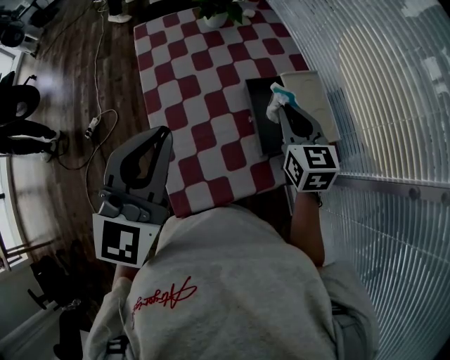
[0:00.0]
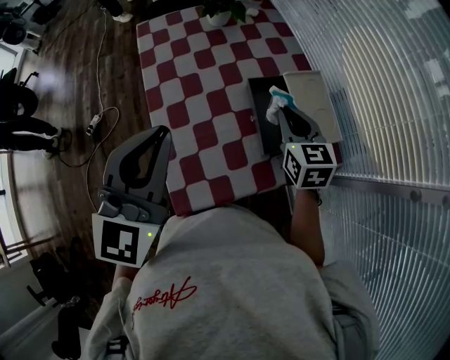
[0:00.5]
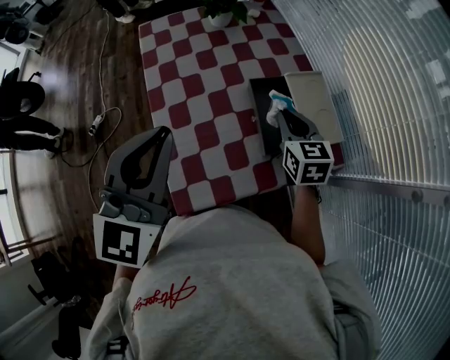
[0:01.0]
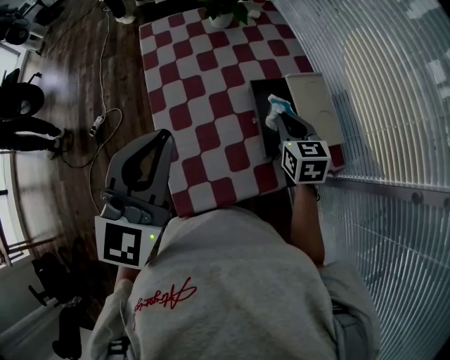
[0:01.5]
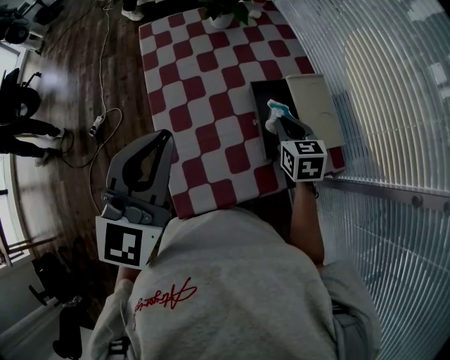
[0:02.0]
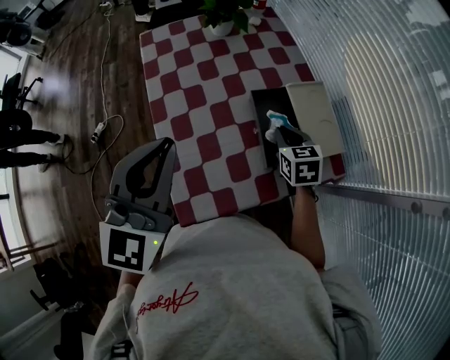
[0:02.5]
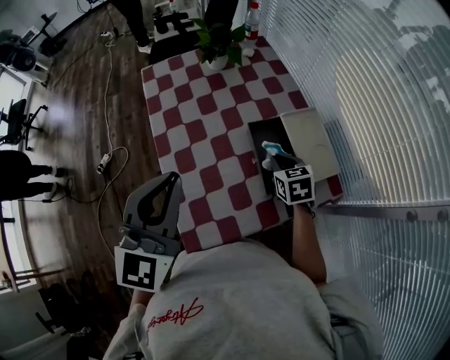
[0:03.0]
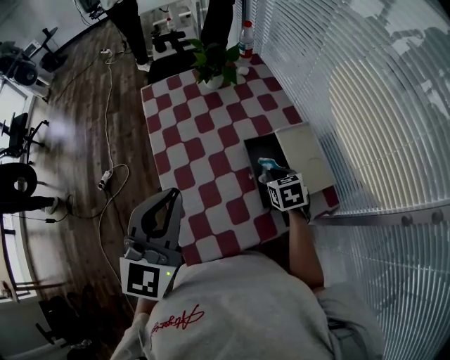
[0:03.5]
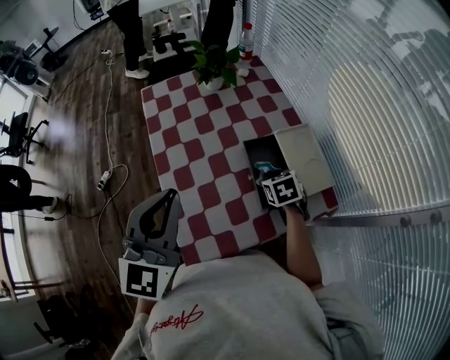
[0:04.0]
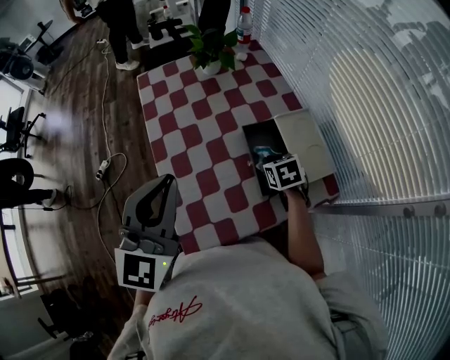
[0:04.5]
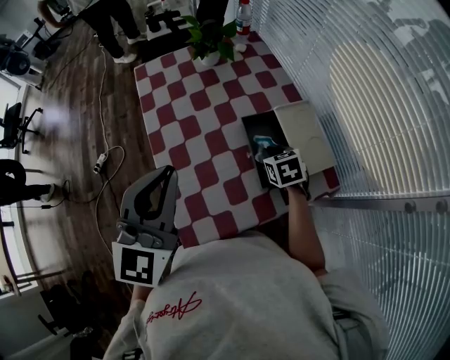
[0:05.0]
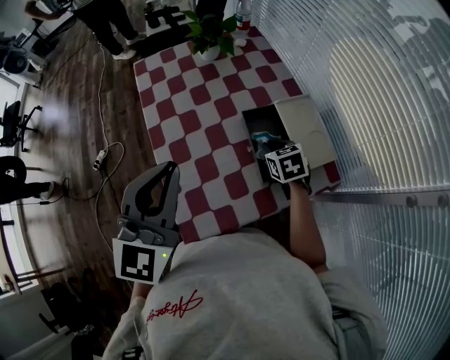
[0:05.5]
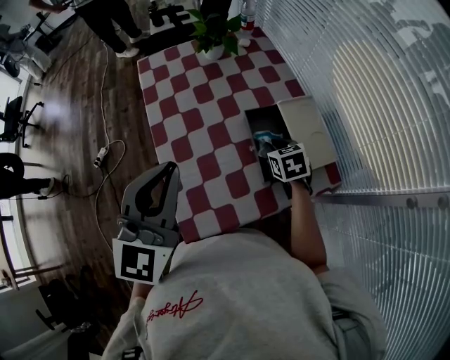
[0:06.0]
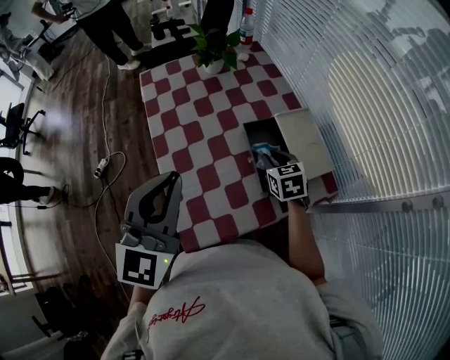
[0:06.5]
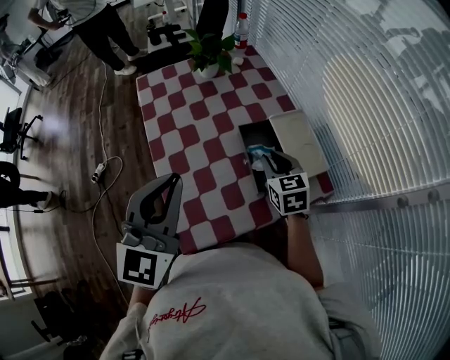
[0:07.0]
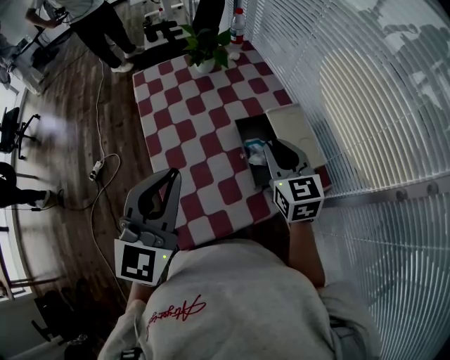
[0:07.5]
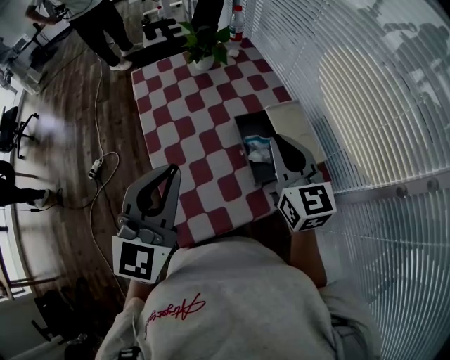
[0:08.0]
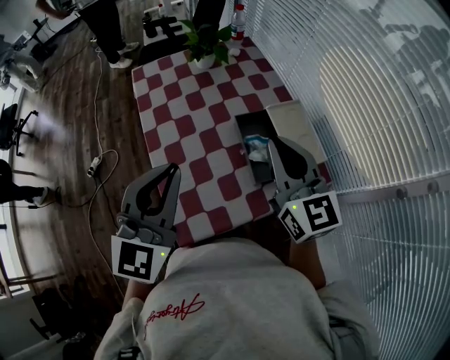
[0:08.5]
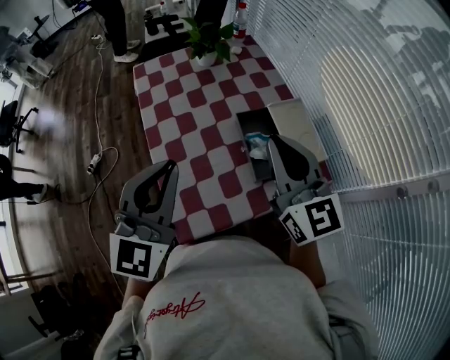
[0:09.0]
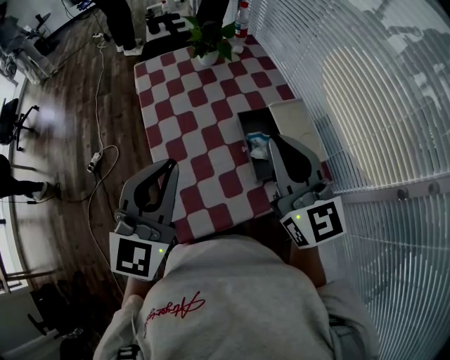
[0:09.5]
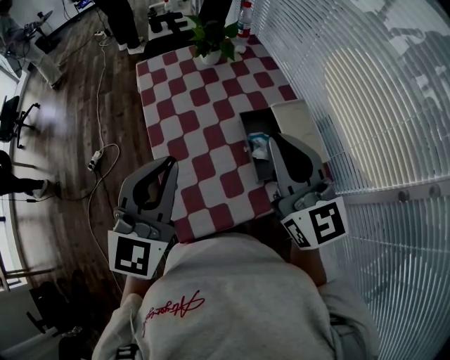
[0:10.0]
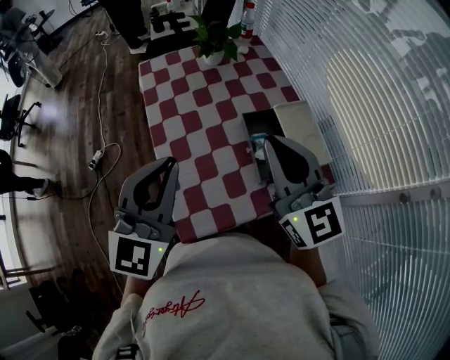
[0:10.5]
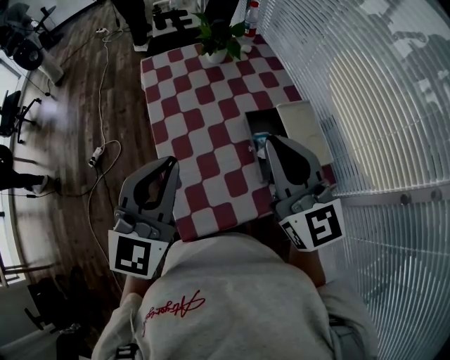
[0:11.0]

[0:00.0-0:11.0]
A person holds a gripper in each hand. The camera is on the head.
0:00.0 to 0:02.0: The right gripper goes about 10 cm downward.
0:02.0 to 0:03.5: The grippers make only small movements.
0:03.5 to 0:05.5: The grippers stay close to where they were, moving slightly.
0:05.5 to 0:07.5: The right gripper shifts some 15 cm upward, and points its fingers approximately 30 degrees further upward.
0:07.5 to 0:09.0: The right gripper travels upward by roughly 10 cm, and changes its angle by about 20 degrees.
0:09.0 to 0:11.0: The grippers make only small movements.

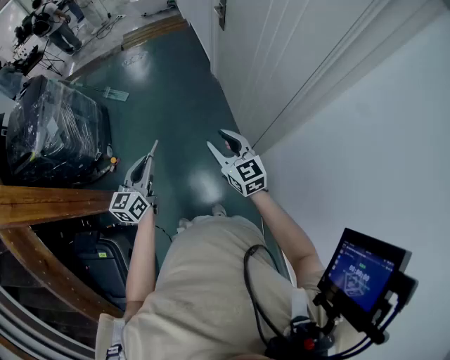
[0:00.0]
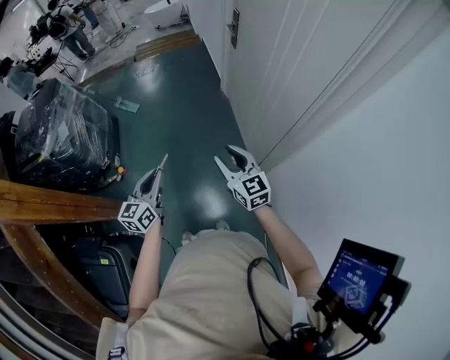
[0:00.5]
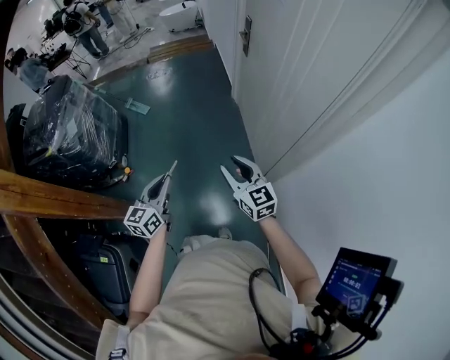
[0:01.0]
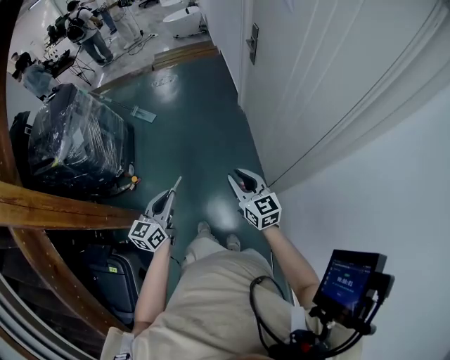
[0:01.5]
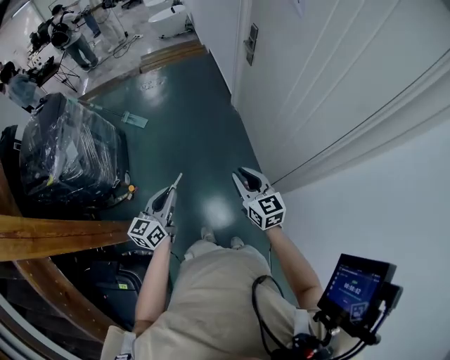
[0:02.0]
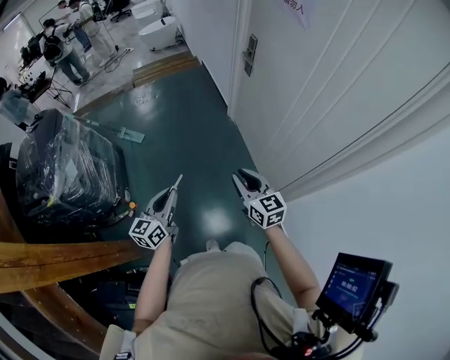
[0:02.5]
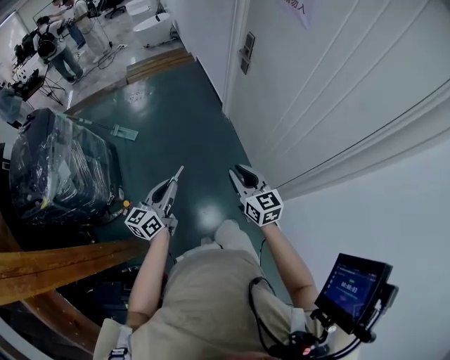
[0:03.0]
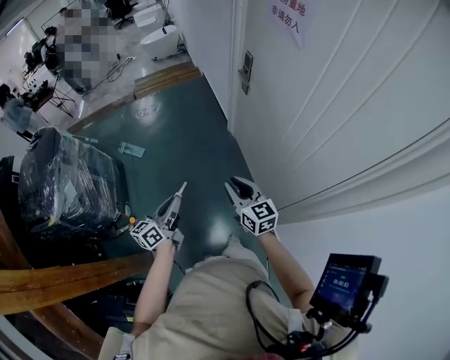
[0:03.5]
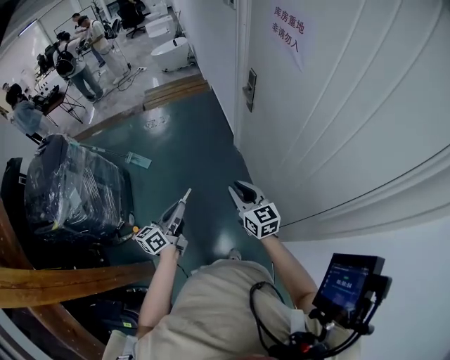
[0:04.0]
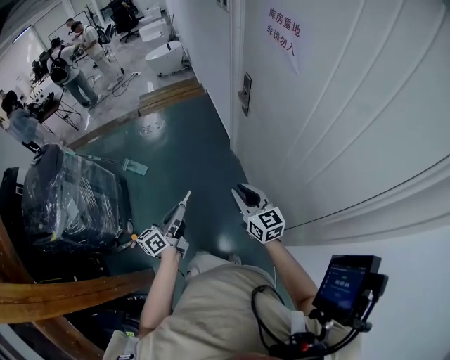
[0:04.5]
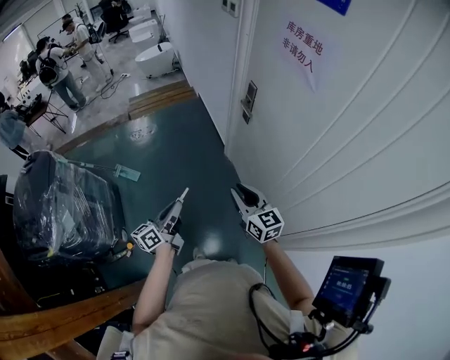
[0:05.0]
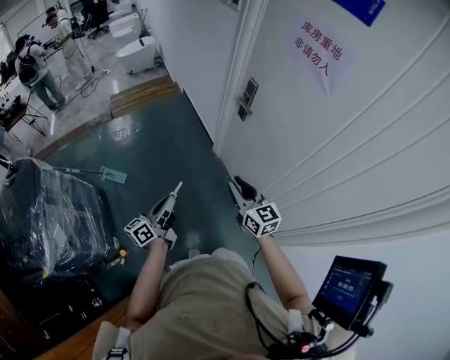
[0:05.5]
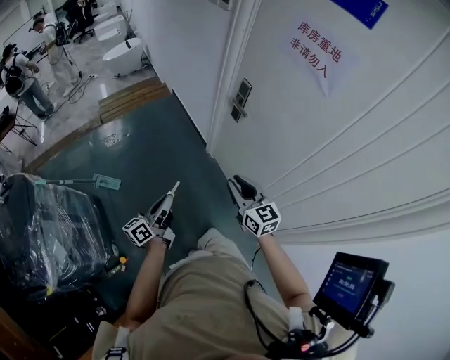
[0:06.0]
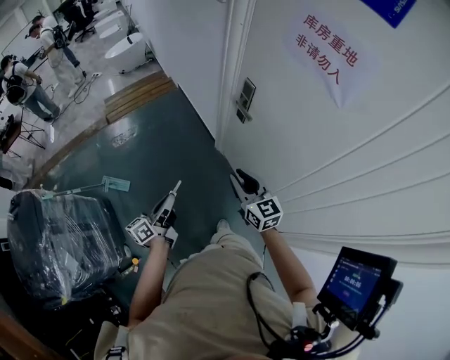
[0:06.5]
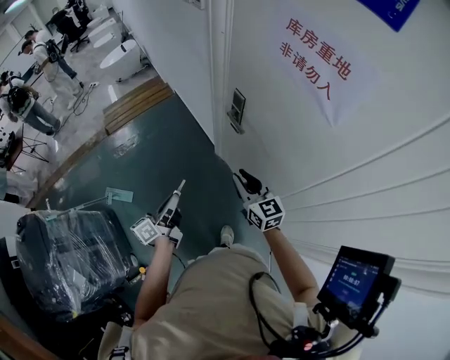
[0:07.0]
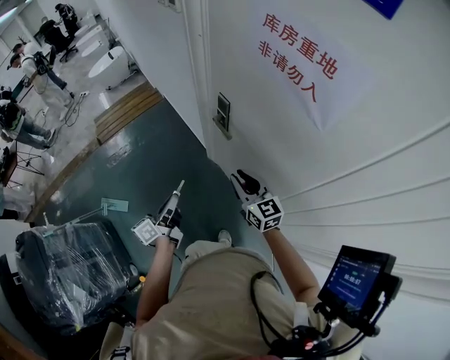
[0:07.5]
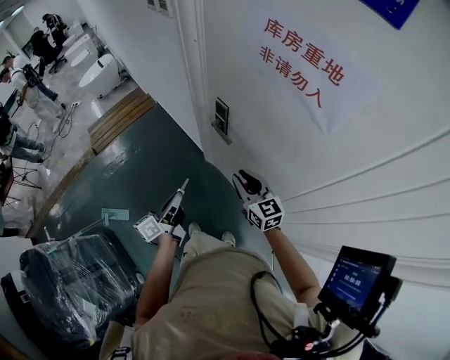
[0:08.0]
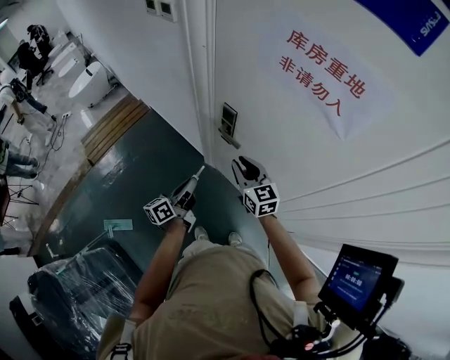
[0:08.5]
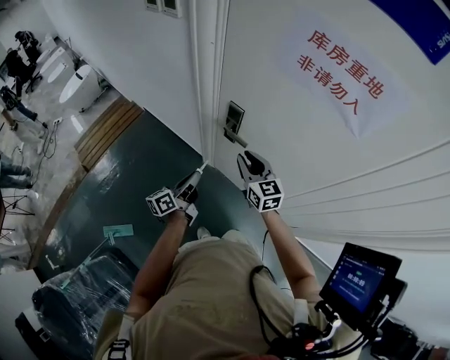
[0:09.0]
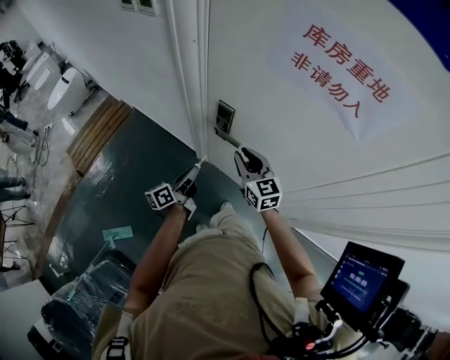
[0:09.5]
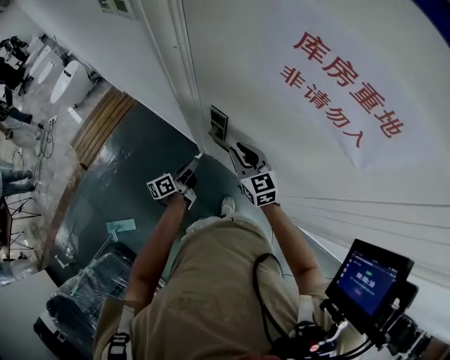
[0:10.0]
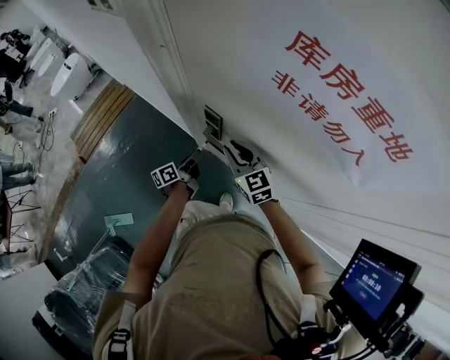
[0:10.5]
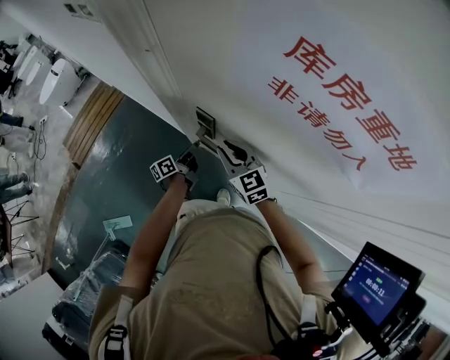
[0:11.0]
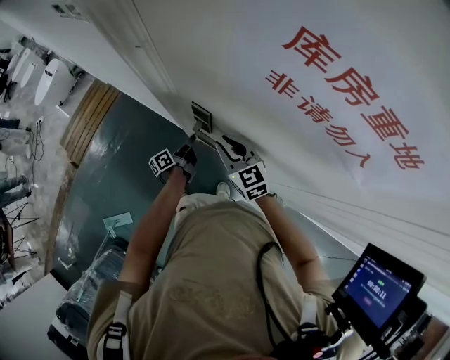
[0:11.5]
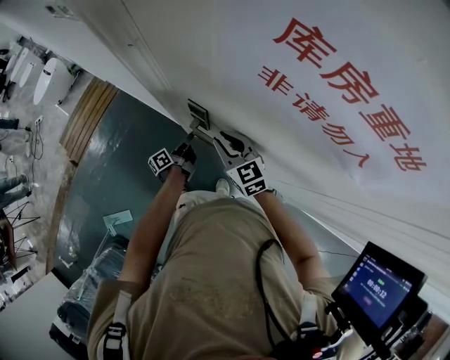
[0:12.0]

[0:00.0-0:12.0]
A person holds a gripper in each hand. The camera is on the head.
0:00.0 to 0:02.0: Both grippers travel together forward and to the left, some 10 cm.
0:02.0 to 0:04.0: The two grippers go roughly 20 cm forward. The left gripper changes its angle by approximately 20 degrees.
0:04.0 to 0:06.0: The grippers both shift forward and to the left by some 20 cm.
0:06.0 to 0:08.0: Both grippers move forward, some 25 cm.
0:08.0 to 0:10.0: The left gripper moves forward and downward, about 25 cm, and turns by some 20 degrees; the right gripper shifts some 15 cm forward.
0:10.0 to 0:12.0: The left gripper goes about 15 cm downward and forward.

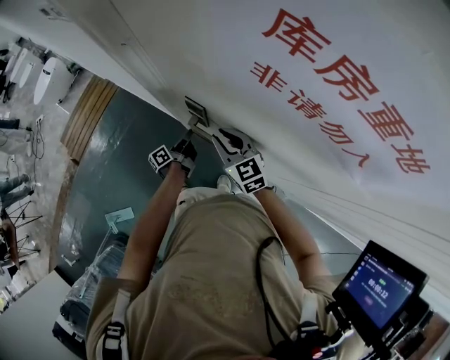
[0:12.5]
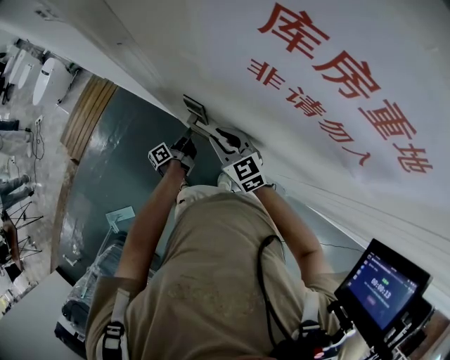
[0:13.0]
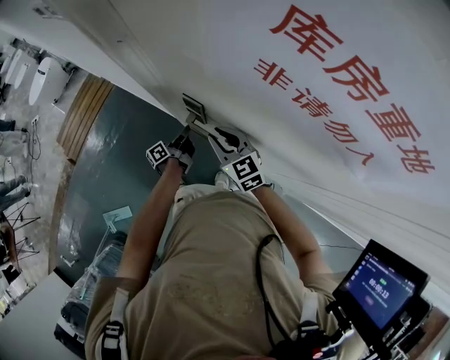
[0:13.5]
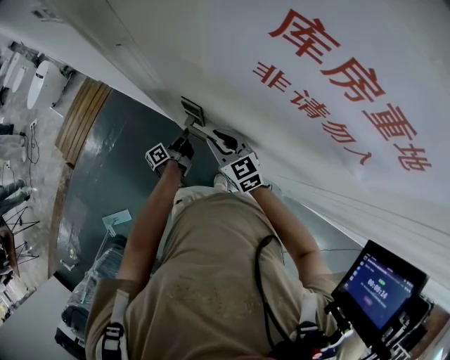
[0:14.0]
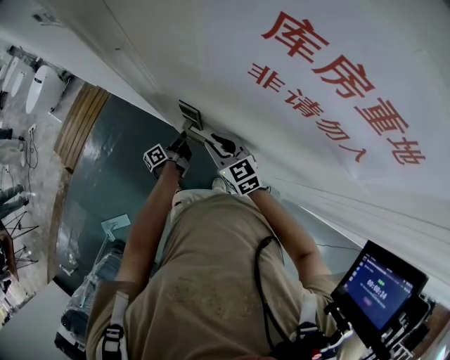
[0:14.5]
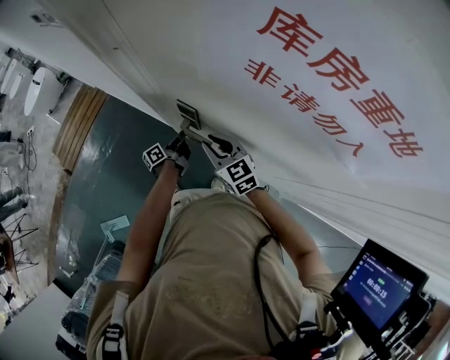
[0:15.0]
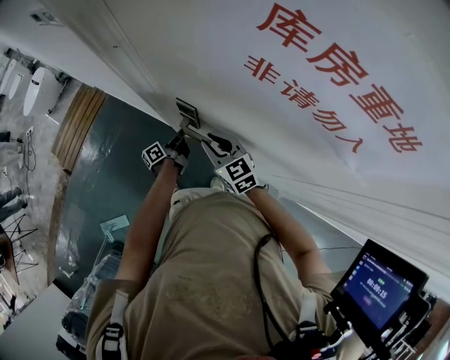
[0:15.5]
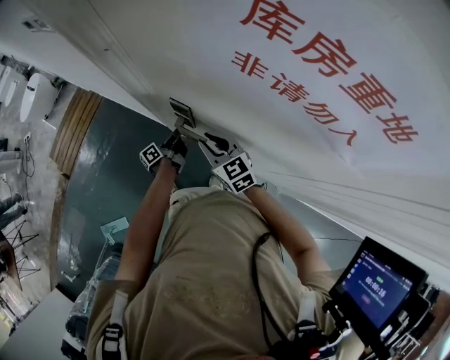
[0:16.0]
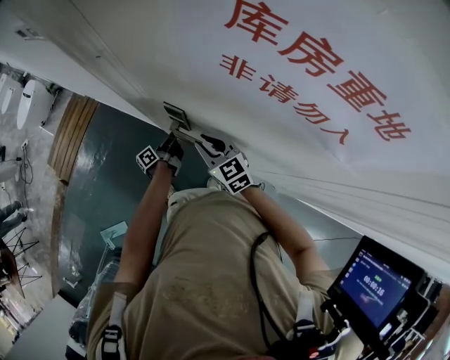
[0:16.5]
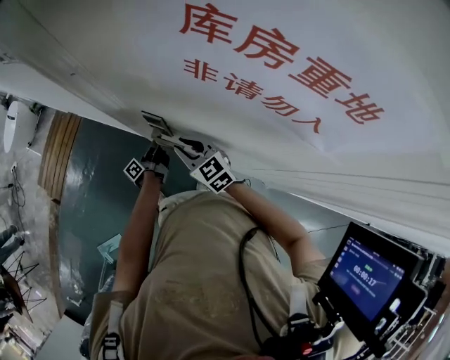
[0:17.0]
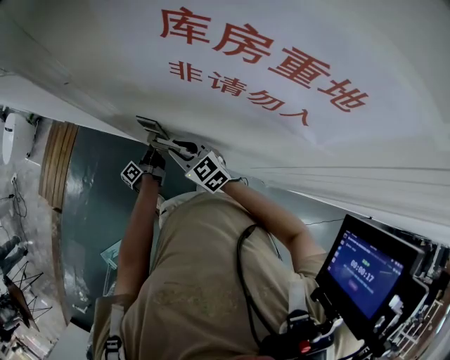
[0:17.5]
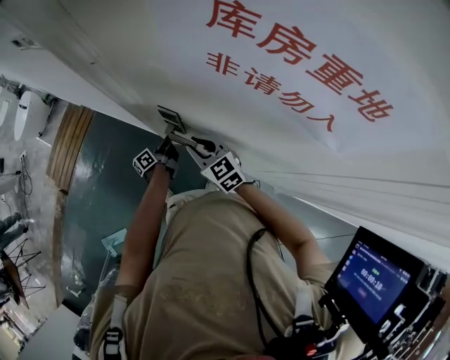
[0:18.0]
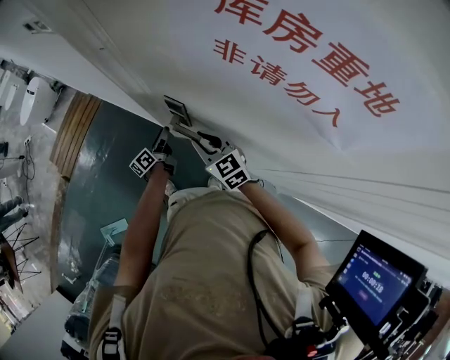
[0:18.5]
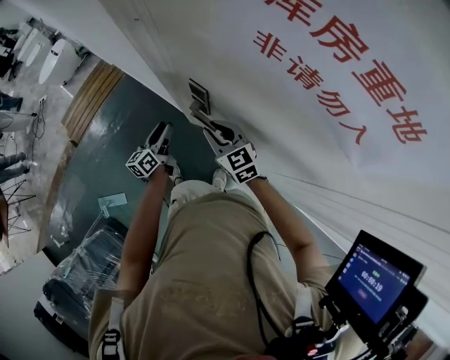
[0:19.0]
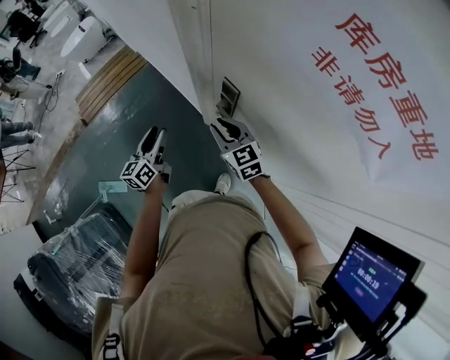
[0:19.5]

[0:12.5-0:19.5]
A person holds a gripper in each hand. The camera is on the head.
0:12.5 to 0:17.5: The grippers move only a little.
0:17.5 to 0:19.5: The left gripper travels to the left, upward and backward by roughly 30 cm, rotates around the line of its fingers by some 50 degrees, clockwise from behind, and opens its fingers; the right gripper is displaced to the left by some 10 cm.
